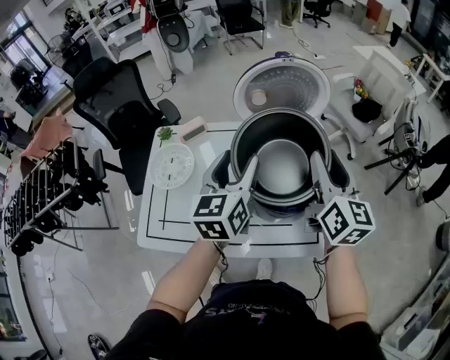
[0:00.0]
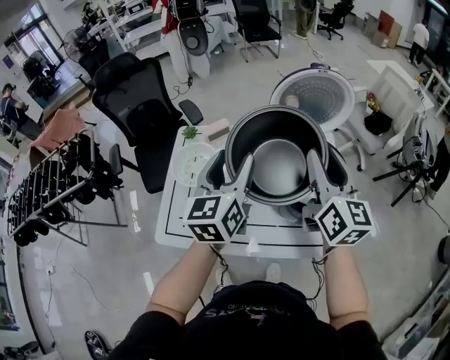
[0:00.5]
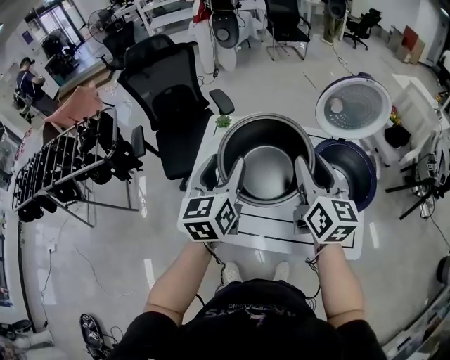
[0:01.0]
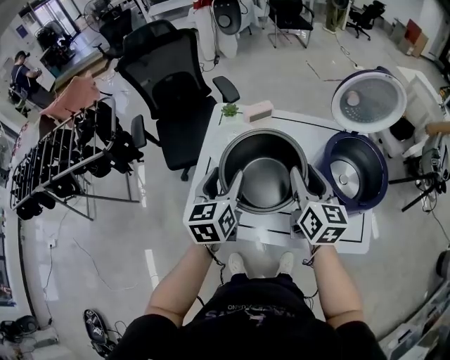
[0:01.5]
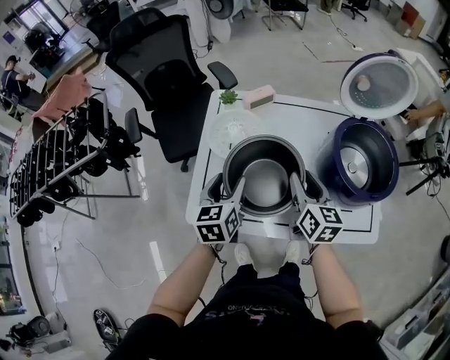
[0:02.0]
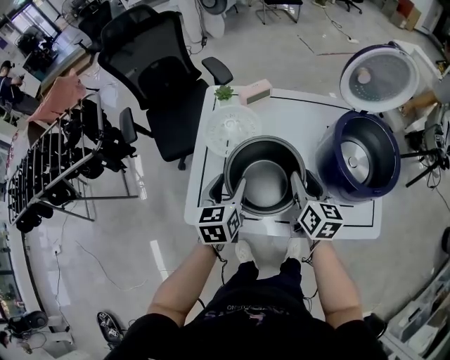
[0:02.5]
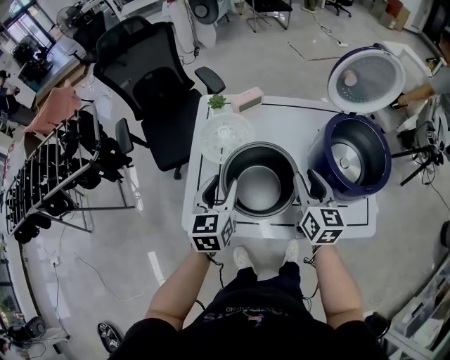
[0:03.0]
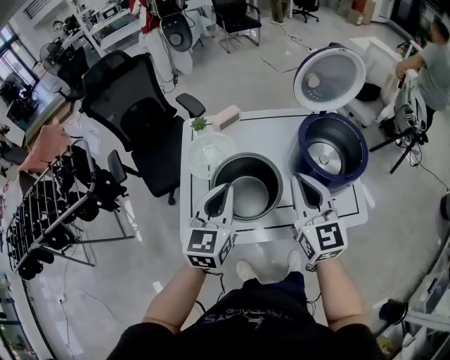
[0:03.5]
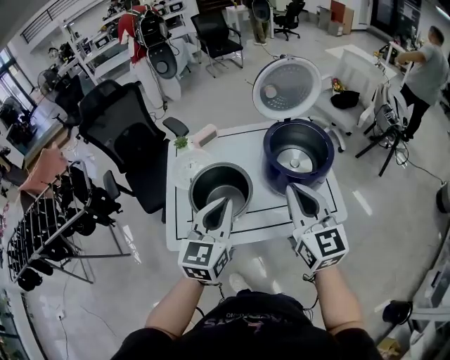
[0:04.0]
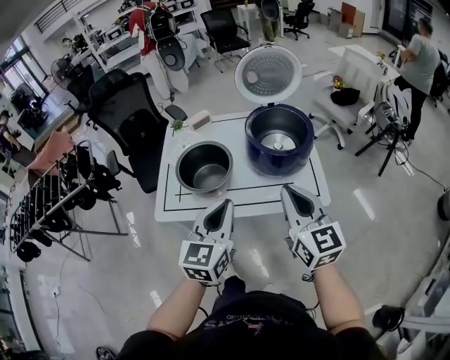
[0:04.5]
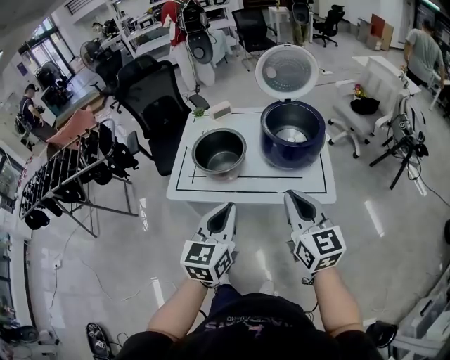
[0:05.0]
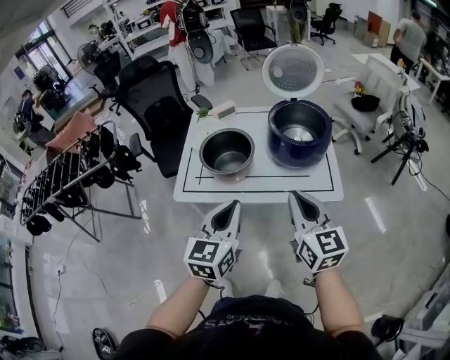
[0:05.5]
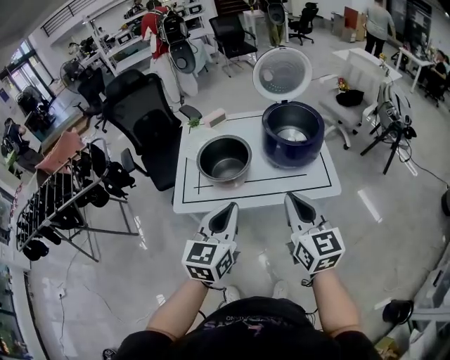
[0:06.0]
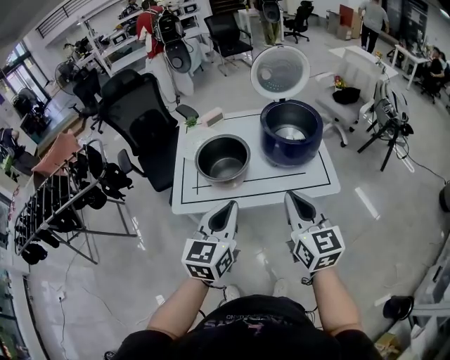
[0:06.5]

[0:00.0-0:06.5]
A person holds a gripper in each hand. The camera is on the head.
0:00.0 to 0:02.0: The grippers both shift to the left and downward by roughly 35 cm. The left gripper rotates approximately 20 degrees. The right gripper changes its angle by roughly 20 degrees.
0:02.0 to 0:04.5: The left gripper goes some 35 cm backward, to the right and upward, changes its angle by approximately 30 degrees, and closes its fingers. Meanwhile the right gripper heads backward, upward and to the right, covering about 35 cm, turns by approximately 20 degrees, and closes up.
0:04.5 to 0:06.5: Both grippers travel together to the left and backward, about 10 cm.

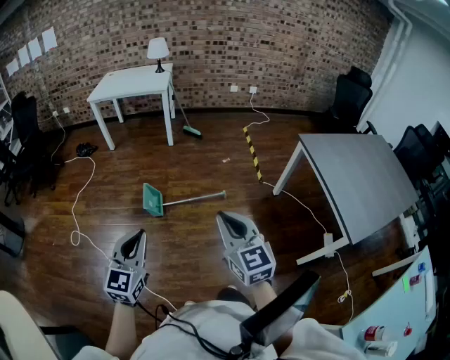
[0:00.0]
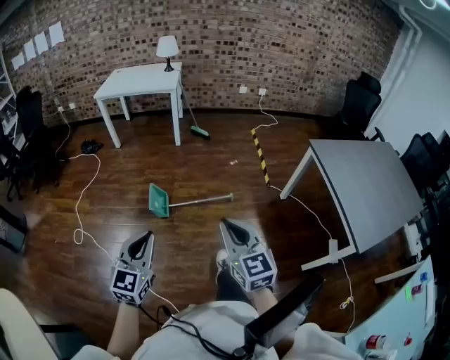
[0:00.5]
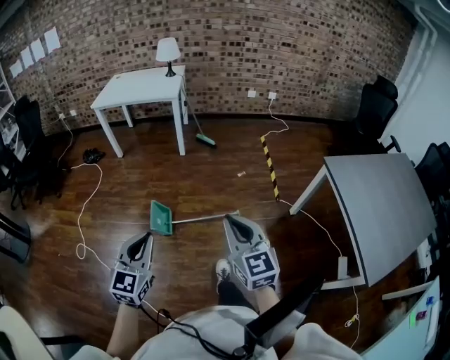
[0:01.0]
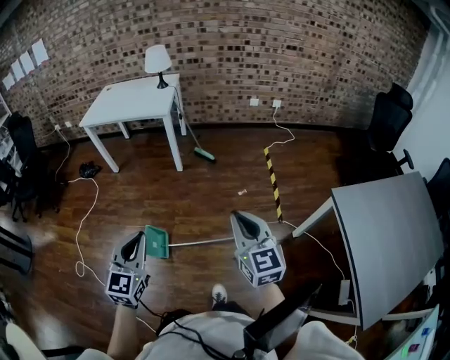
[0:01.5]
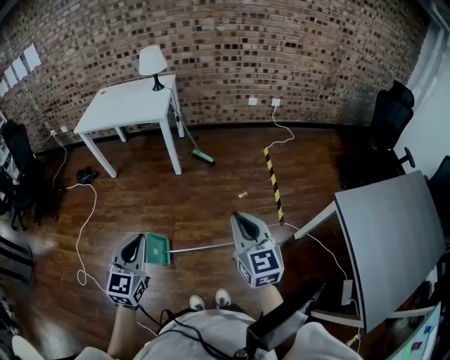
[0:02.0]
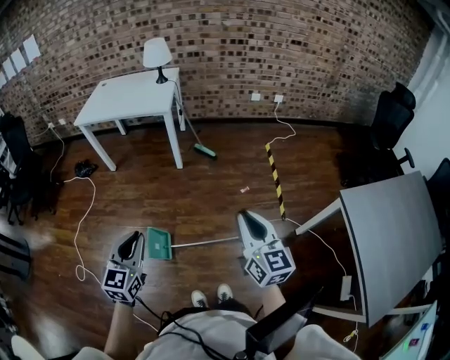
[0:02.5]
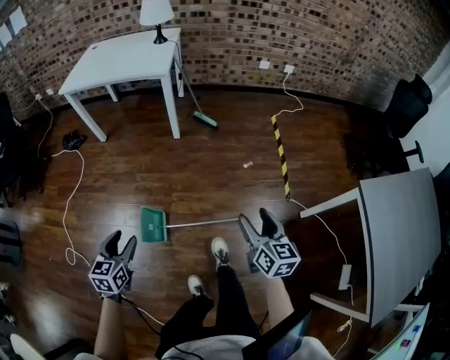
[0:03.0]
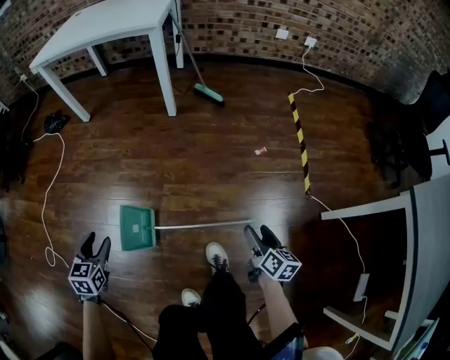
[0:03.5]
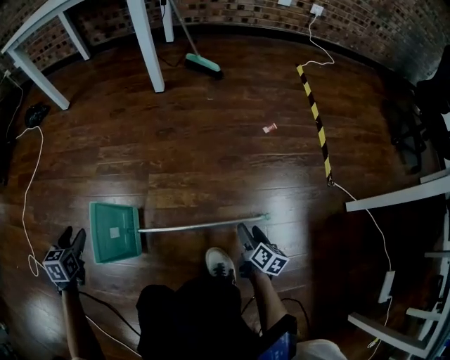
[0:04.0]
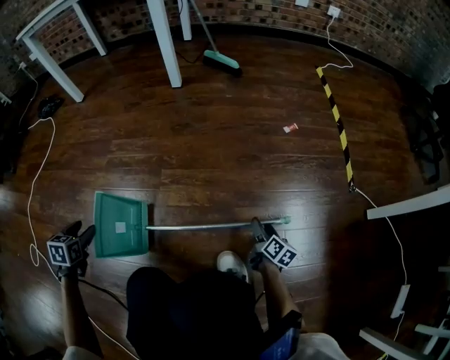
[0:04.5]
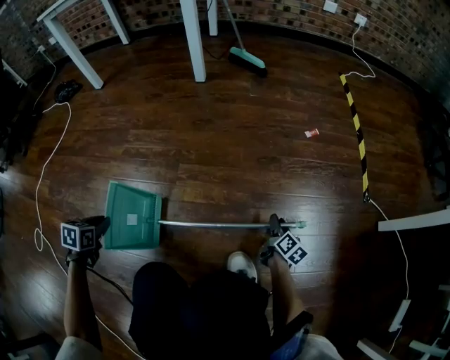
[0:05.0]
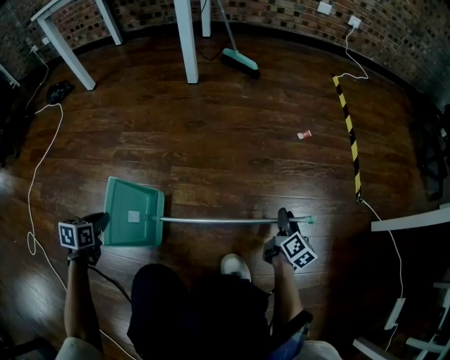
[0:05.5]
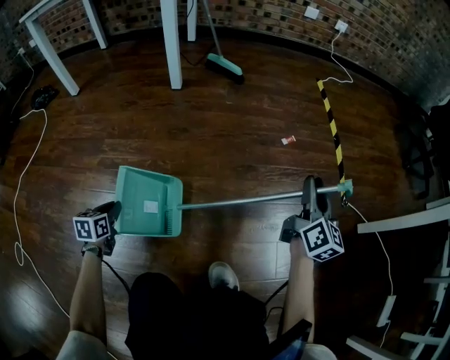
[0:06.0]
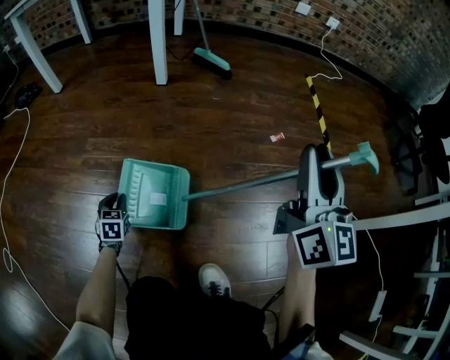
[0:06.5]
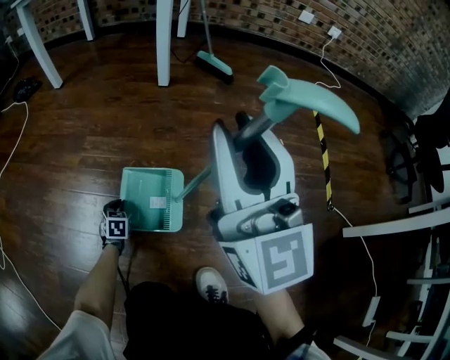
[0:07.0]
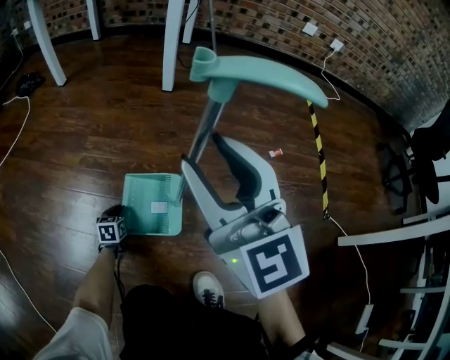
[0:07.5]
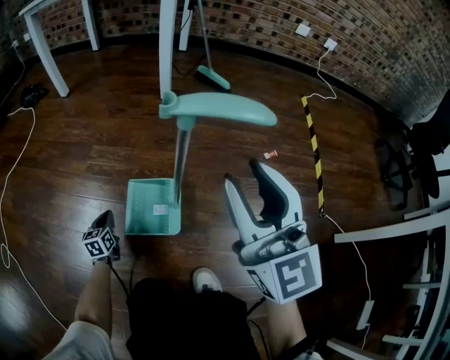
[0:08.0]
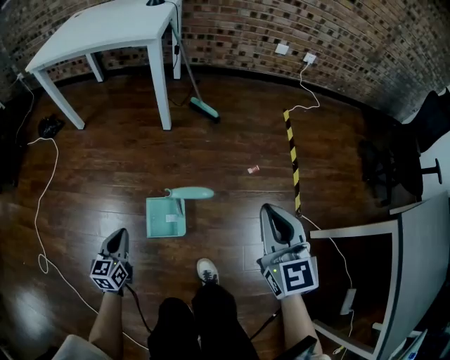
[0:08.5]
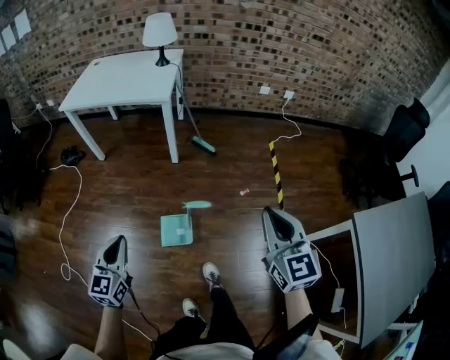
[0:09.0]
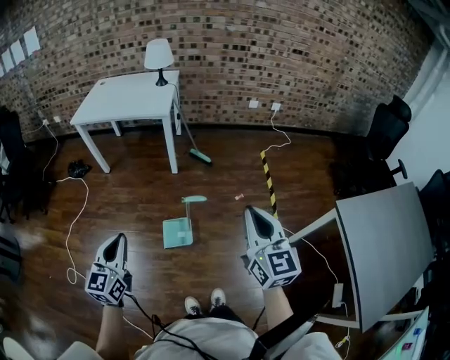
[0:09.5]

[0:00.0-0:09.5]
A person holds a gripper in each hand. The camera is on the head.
0:00.0 to 0:02.0: The pair of grippers is taken forward, some 50 cm.
0:02.0 to 0:04.0: The right gripper travels downward by some 90 cm, twists approximately 50 degrees clockwise, seen from behind, and opens. The left gripper travels downward and to the left by approximately 80 cm, points its fingers some 30 degrees further downward, and opens.
0:04.0 to 0:05.5: The left gripper goes roughly 10 cm downward, and closes; the right gripper travels forward by some 10 cm, moves roughly 10 cm downward and comes back, and closes.
0:05.5 to 0:07.5: The right gripper travels upward by about 40 cm, and swivels about 80 degrees, while the left gripper shifts approximately 20 cm downward.
0:07.5 to 0:09.5: The left gripper travels upward by some 1 m, and points its fingers about 40 degrees further upward; the right gripper goes about 60 cm upward, rotates roughly 30 degrees, and closes.

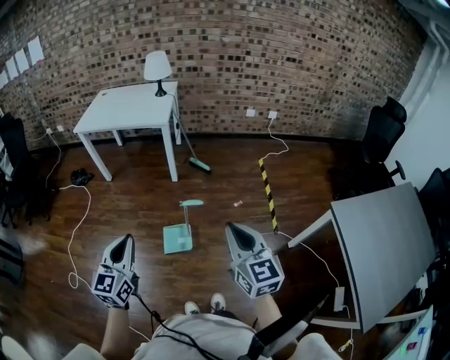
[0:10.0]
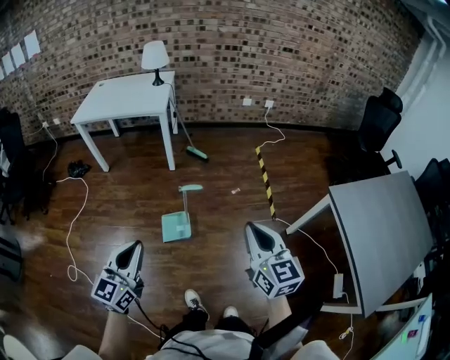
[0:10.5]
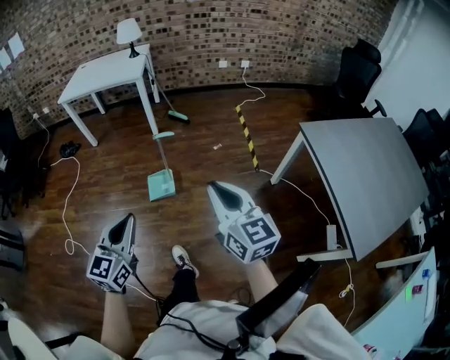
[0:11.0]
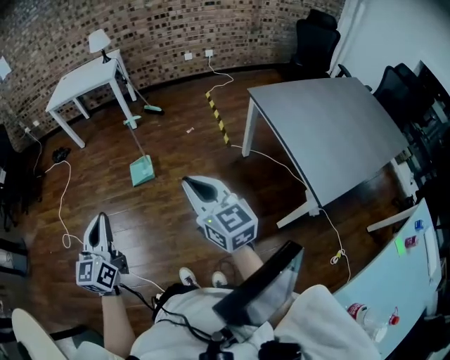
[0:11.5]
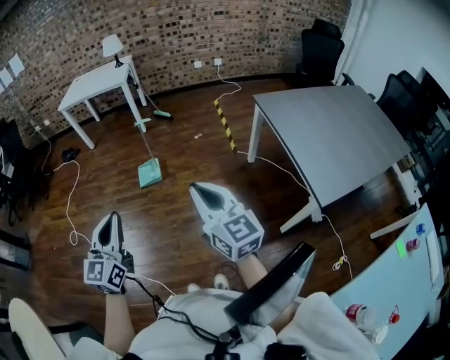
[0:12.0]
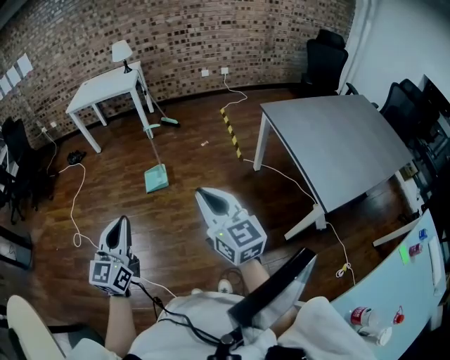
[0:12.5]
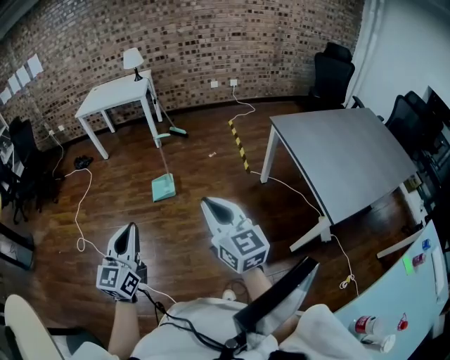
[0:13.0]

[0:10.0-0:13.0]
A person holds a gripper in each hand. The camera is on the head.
0:10.0 to 0:11.5: The two grippers travel together, backward, approximately 50 cm.
0:11.5 to 0:13.0: The right gripper moves backward and to the left, about 10 cm, while the left gripper heads backward, covering about 5 cm.

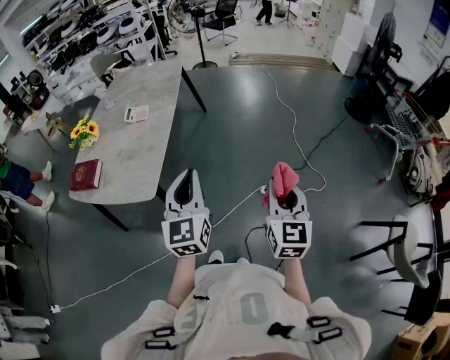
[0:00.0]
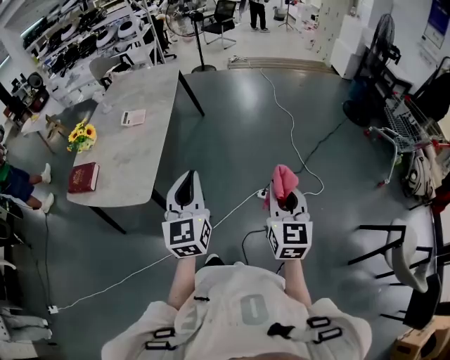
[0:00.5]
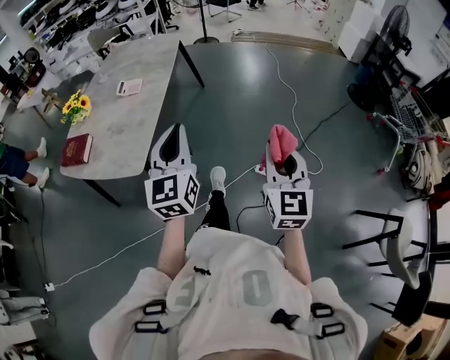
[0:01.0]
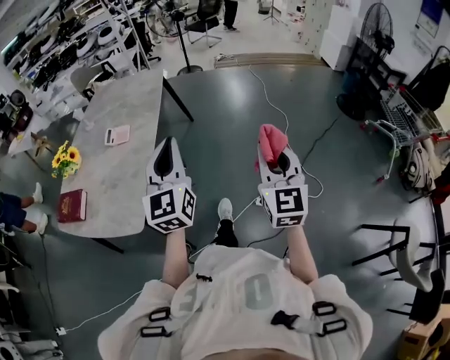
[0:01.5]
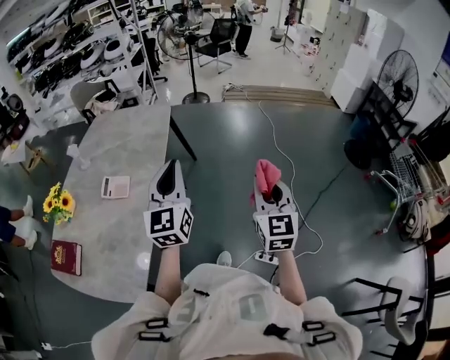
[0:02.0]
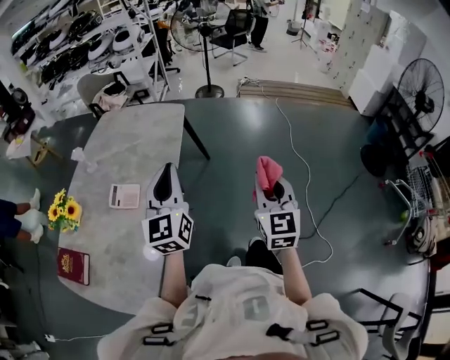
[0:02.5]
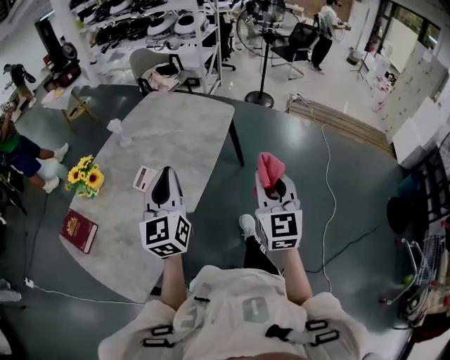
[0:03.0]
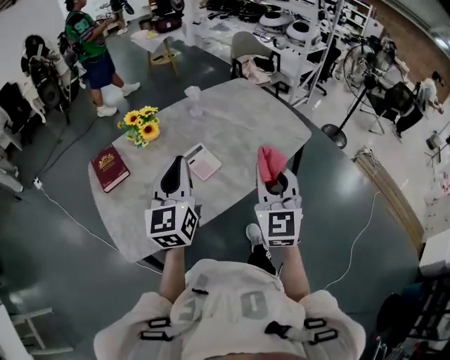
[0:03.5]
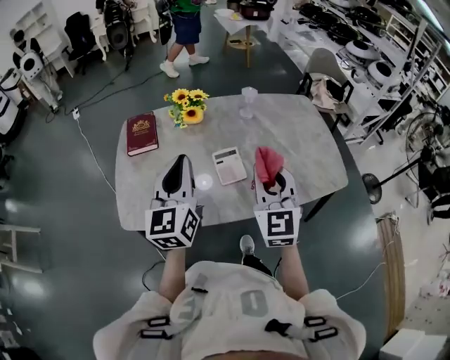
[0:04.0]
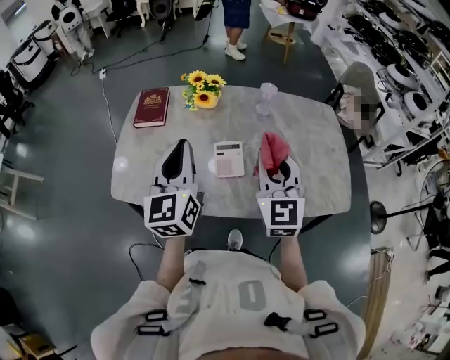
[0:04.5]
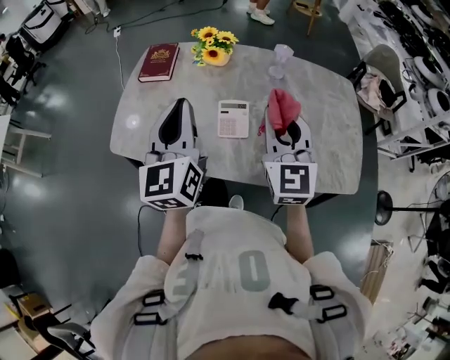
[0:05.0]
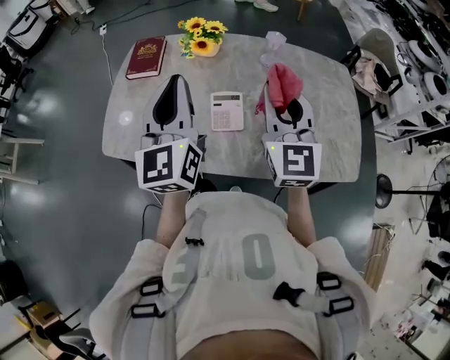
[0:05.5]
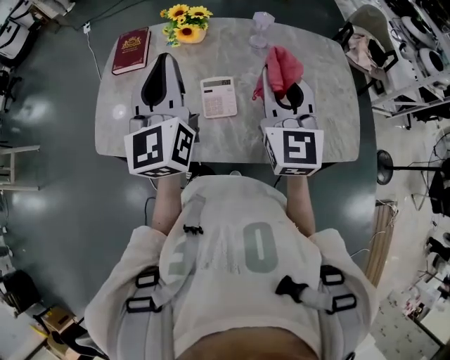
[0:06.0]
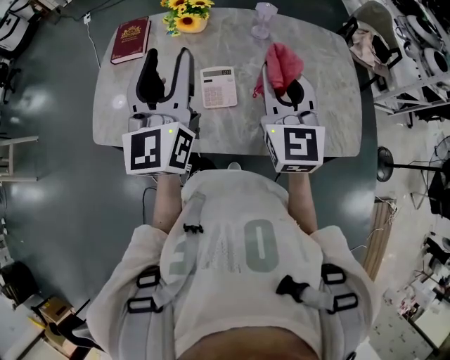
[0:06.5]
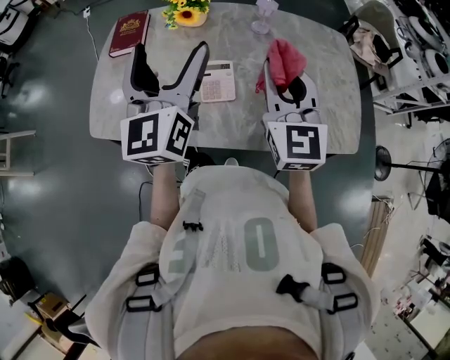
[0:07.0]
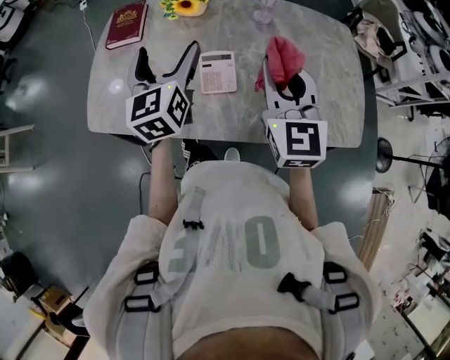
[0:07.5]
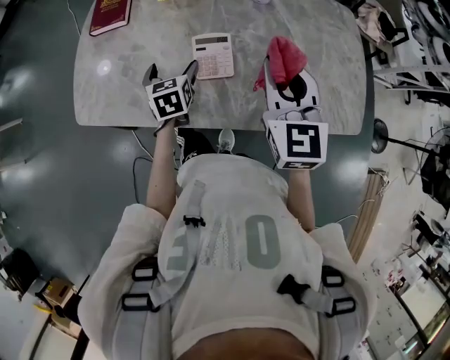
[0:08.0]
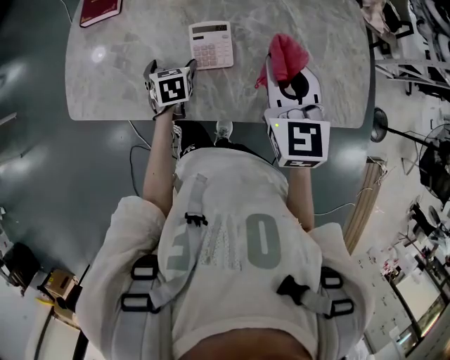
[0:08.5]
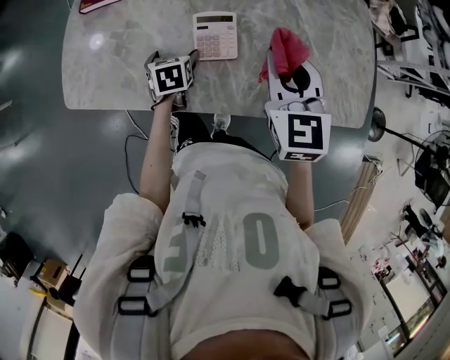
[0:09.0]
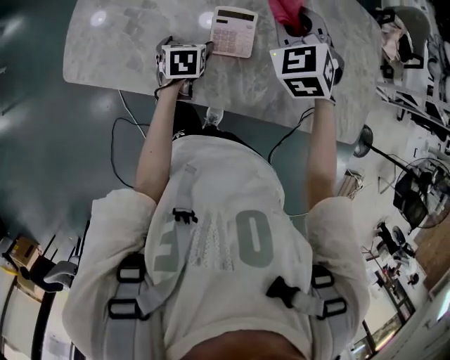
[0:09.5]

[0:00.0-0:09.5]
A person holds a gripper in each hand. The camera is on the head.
0:00.0 to 0:02.0: The pair of grippers is taken forward, approximately 50 cm.
0:02.0 to 0:04.0: The right gripper ends up roughly 50 cm from where it was, and turns by about 80 degrees. Meanwhile the left gripper changes place by some 30 cm, and swivels some 80 degrees.
0:04.0 to 0:05.5: The right gripper moves forward and to the right, approximately 10 cm; the left gripper travels to the right by some 10 cm, and rotates some 20 degrees.
0:05.5 to 0:07.5: The left gripper is displaced downward and forward by roughly 15 cm, and opens. The right gripper moves approximately 5 cm.
0:07.5 to 0:09.5: The left gripper goes roughly 30 cm downward, and angles its fingers downward, by approximately 50 degrees; the right gripper shifts about 20 cm downward and forward, and rotates about 40 degrees.
